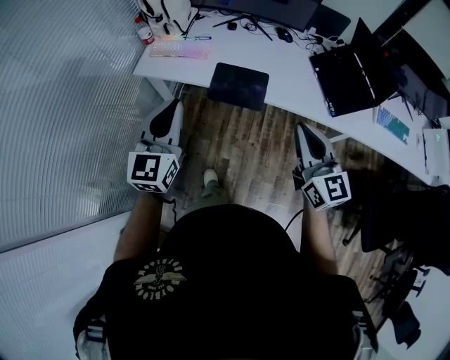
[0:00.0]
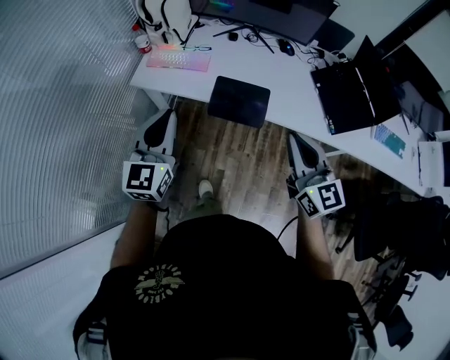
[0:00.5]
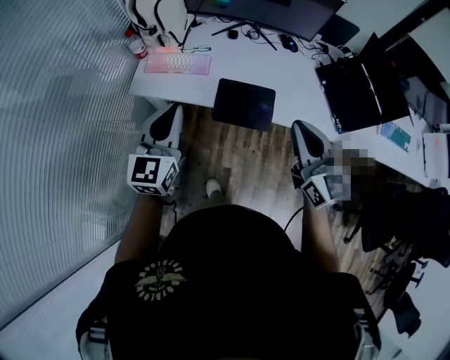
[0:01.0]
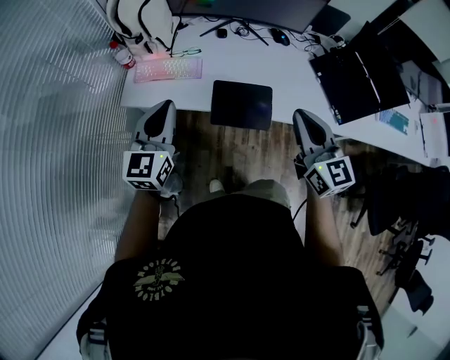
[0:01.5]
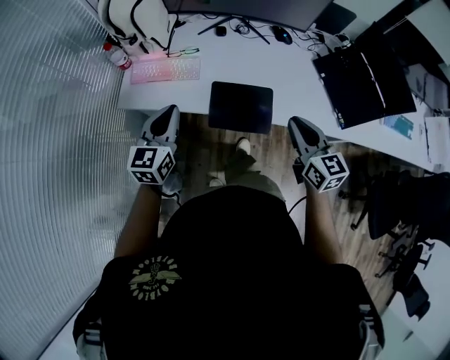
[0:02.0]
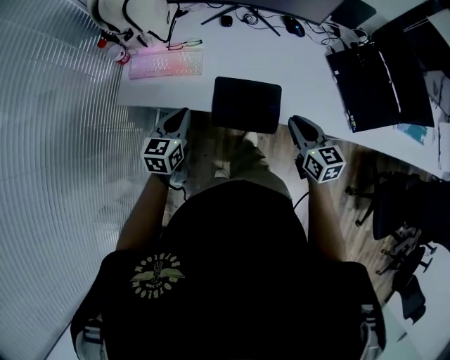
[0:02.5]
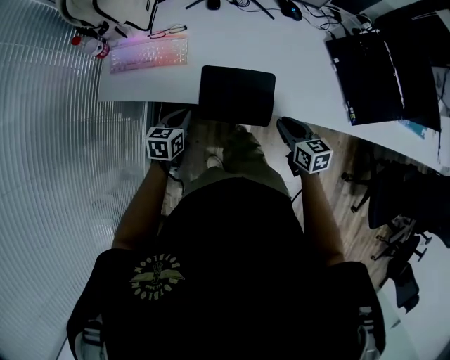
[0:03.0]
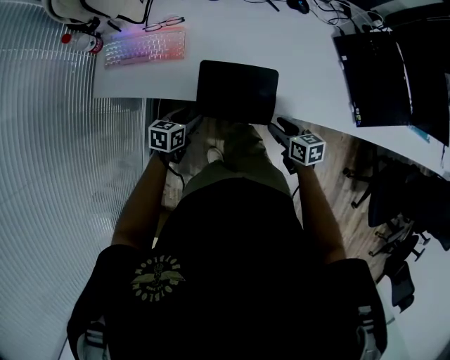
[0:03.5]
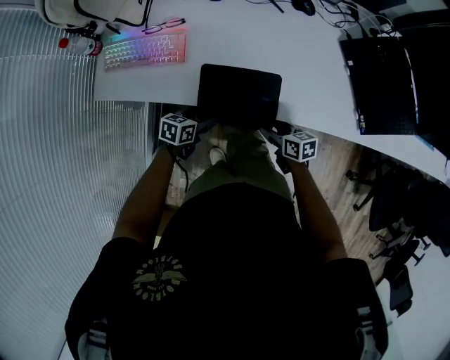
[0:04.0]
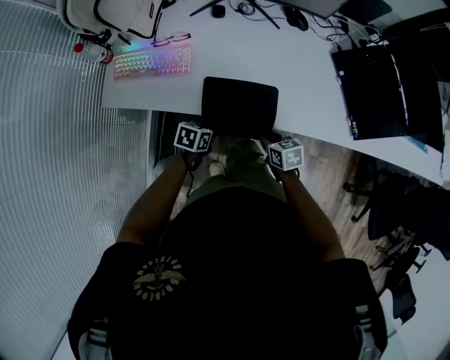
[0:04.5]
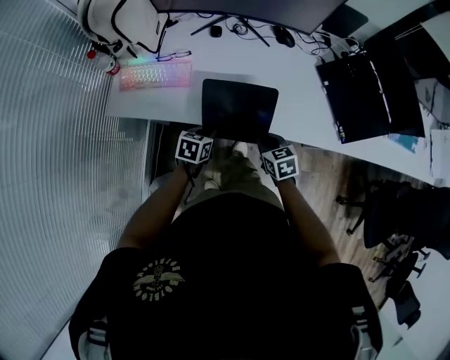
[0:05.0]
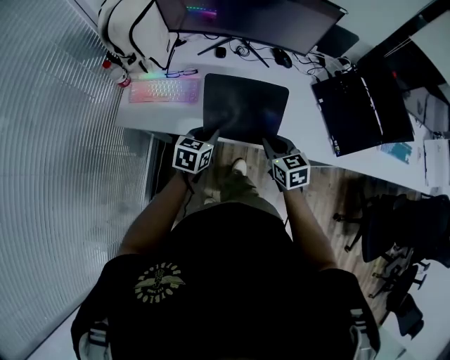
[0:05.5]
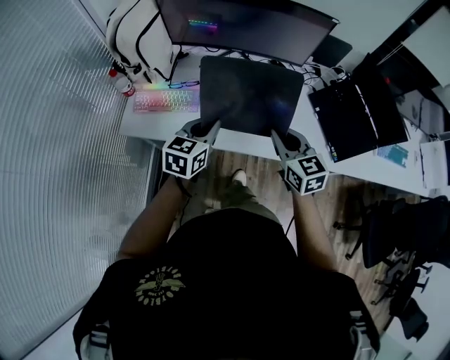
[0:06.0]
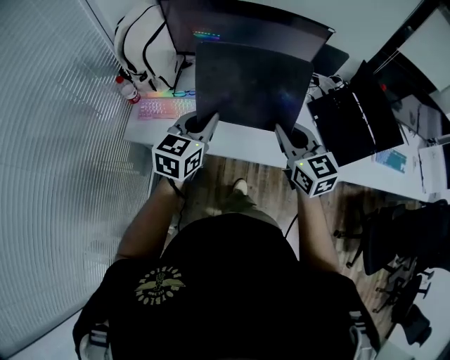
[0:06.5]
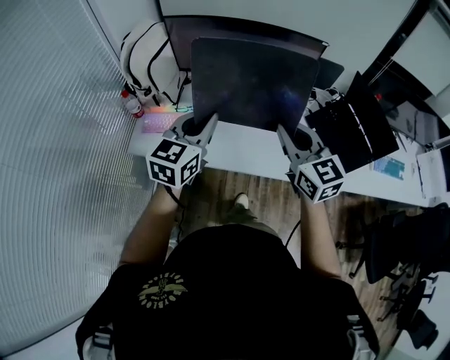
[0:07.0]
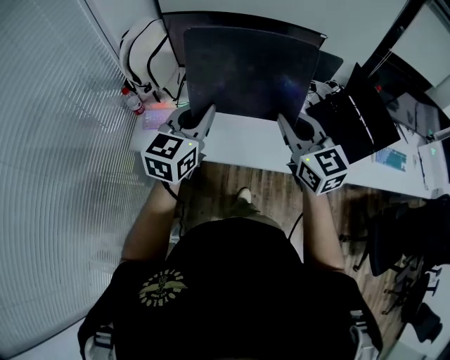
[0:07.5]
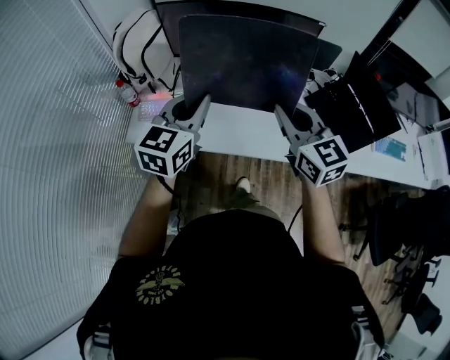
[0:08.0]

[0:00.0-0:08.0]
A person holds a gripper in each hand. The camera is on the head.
0:00.0 to 0:02.0: The grippers both shift forward and downward by approximately 25 cm.
0:02.0 to 0:04.0: Both grippers move downward, roughly 35 cm. The left gripper changes its angle by approximately 50 degrees, and opens up. Meanwhile the right gripper swivels roughly 40 degrees, and opens up.
0:04.0 to 0:06.0: The two grippers go roughly 35 cm upward. The left gripper changes its angle by about 40 degrees, and closes, while the right gripper rotates roughly 50 degrees, and closes up.
0:06.0 to 0:08.0: Both grippers travel together upward, about 15 cm.

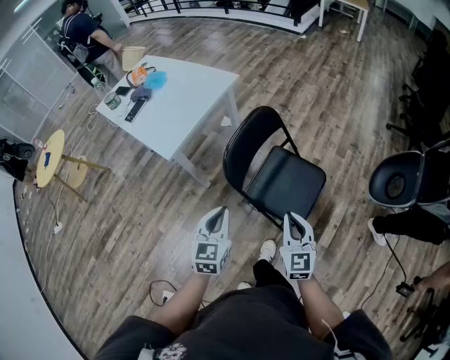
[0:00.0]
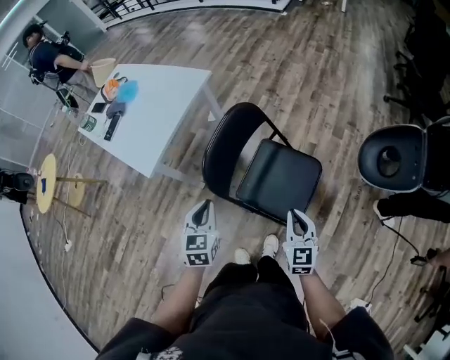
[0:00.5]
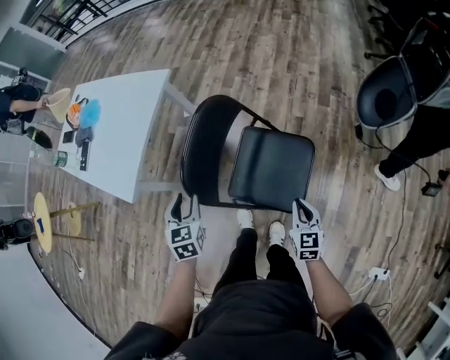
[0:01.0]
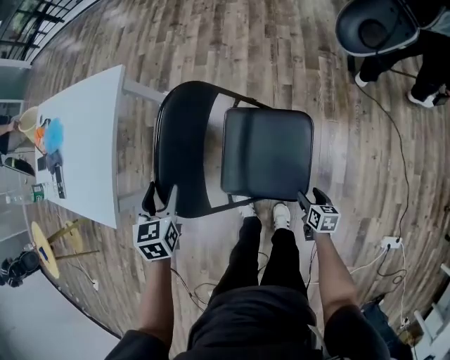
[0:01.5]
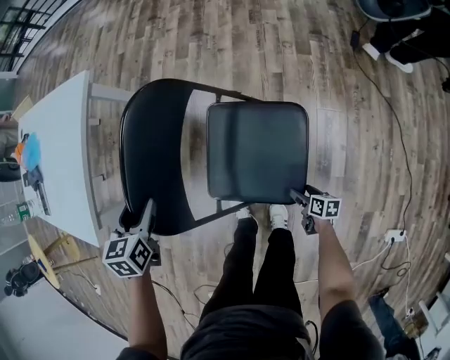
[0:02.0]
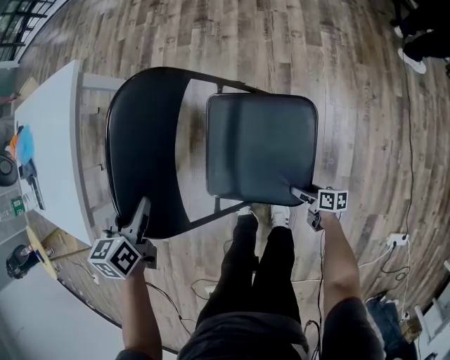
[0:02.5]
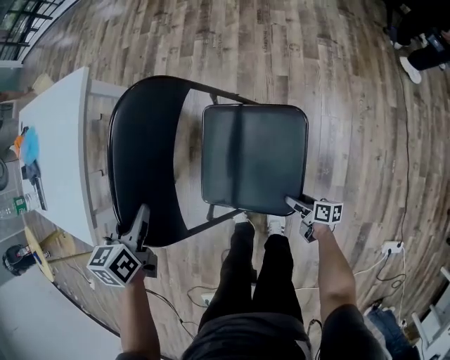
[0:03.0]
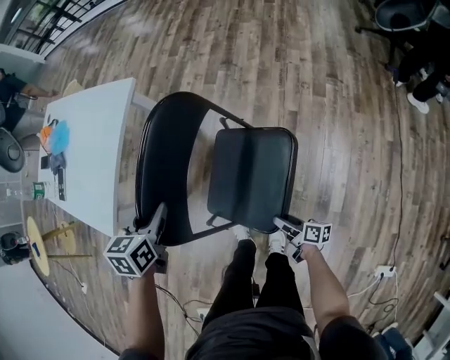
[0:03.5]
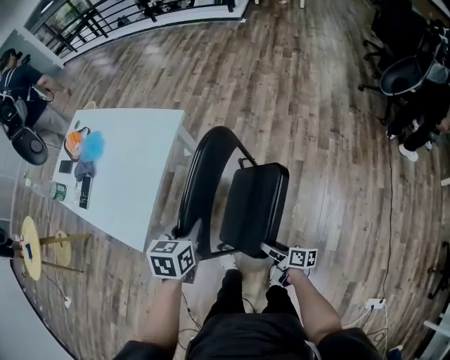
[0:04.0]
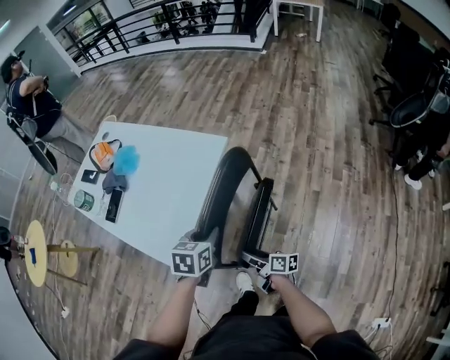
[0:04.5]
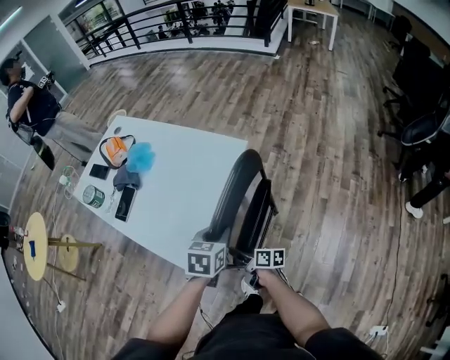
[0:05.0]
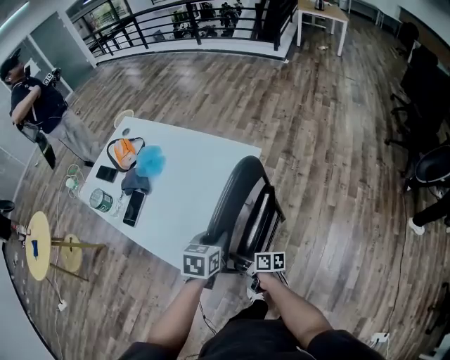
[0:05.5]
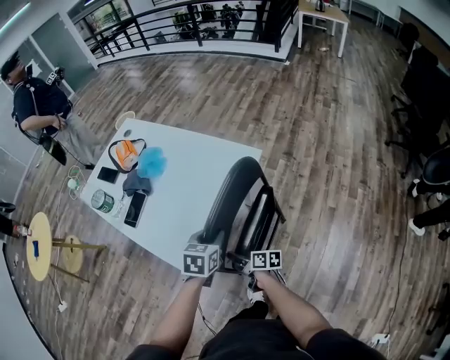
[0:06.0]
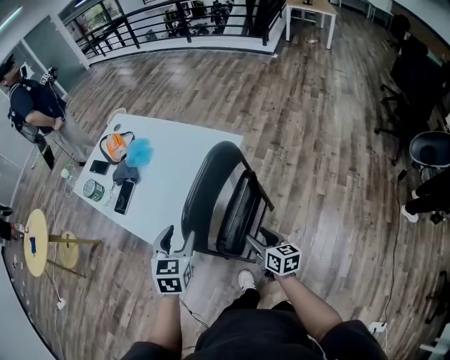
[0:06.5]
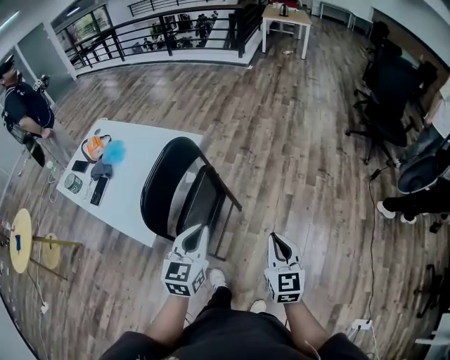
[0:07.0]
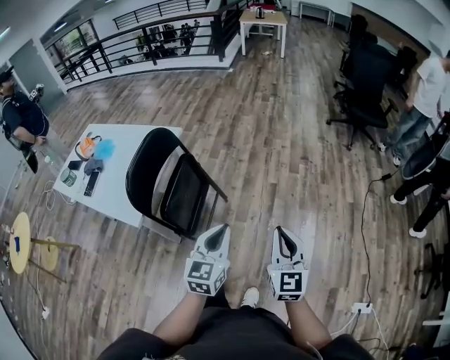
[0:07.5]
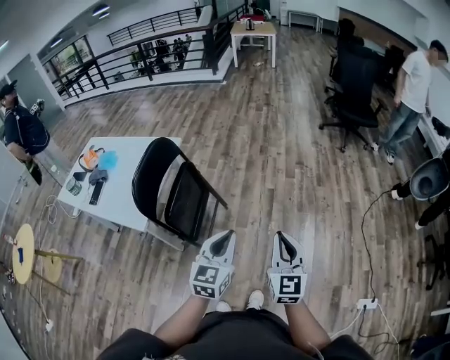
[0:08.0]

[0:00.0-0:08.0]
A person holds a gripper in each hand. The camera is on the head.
0:00.0 to 0:02.0: The right gripper travels downward by approximately 50 cm, rotates around the line of its fingers by approximately 60 degrees, clockwise from behind, and opens its fingers. The left gripper moves forward and downward, approximately 40 cm, changes its angle by approximately 30 degrees, and opens.
0:02.0 to 0:04.0: The right gripper shifts some 35 cm upward, to the left and forward, and changes its angle by roughly 30 degrees. Meanwhile the left gripper is displaced upward by approximately 15 cm, and closes.
0:04.0 to 0:06.0: The right gripper shifts some 40 cm to the left and forward. Meanwhile the left gripper heads to the left and forward, covering roughly 25 cm.
0:06.0 to 0:08.0: The two grippers travel together, roughly 60 cm. The right gripper rotates about 90 degrees, and closes up; the left gripper points its fingers about 30 degrees further upward, and closes its fingers.

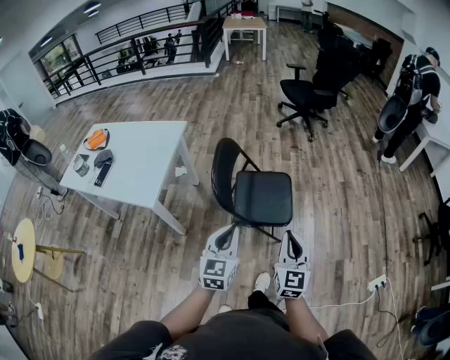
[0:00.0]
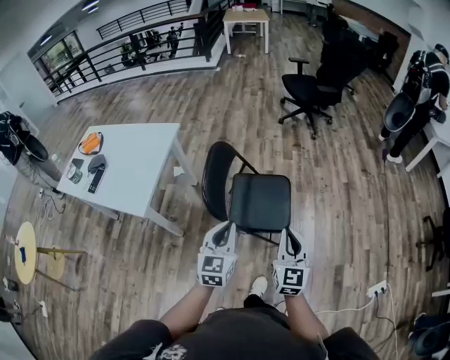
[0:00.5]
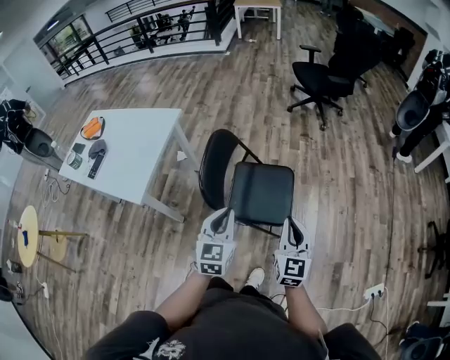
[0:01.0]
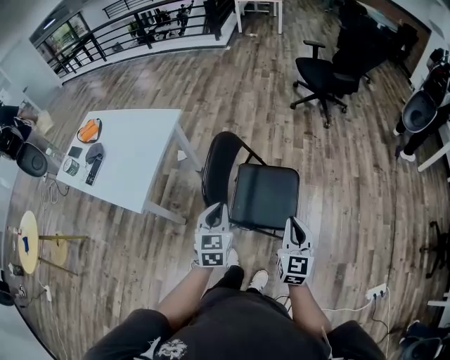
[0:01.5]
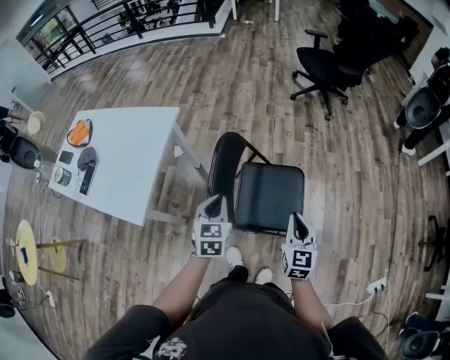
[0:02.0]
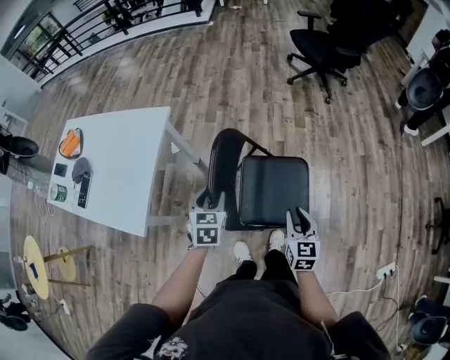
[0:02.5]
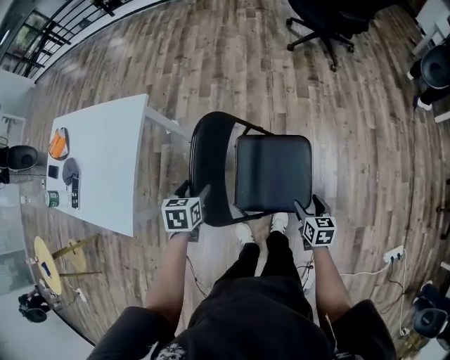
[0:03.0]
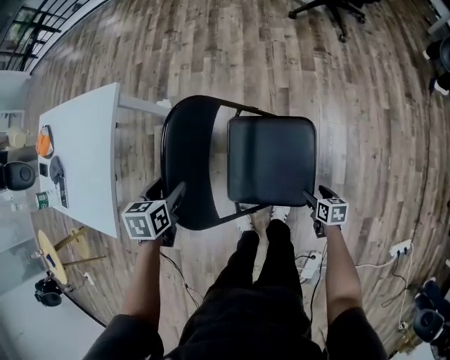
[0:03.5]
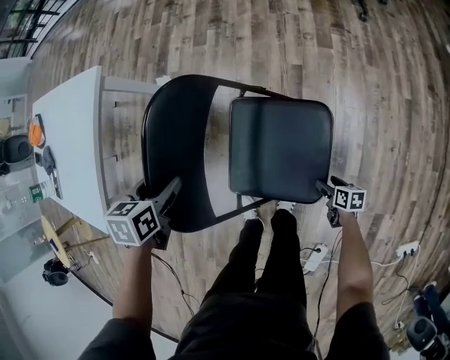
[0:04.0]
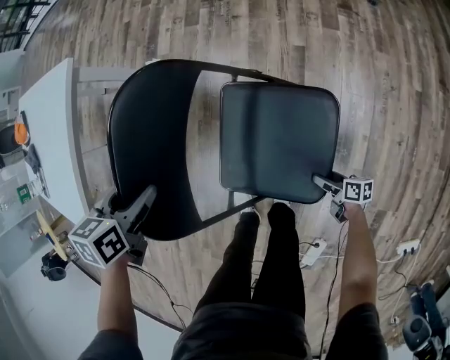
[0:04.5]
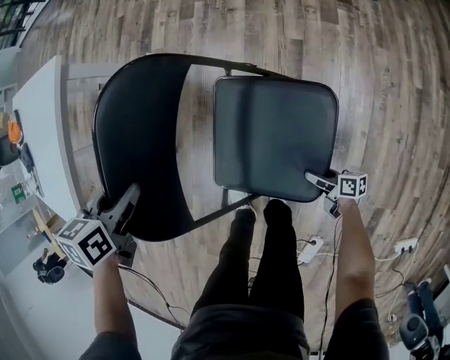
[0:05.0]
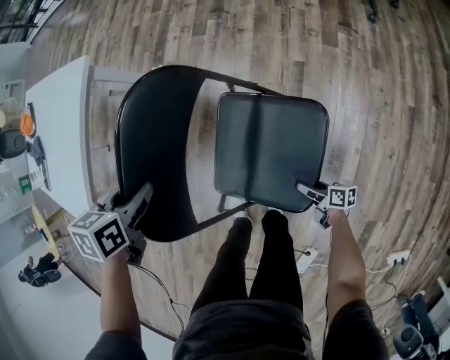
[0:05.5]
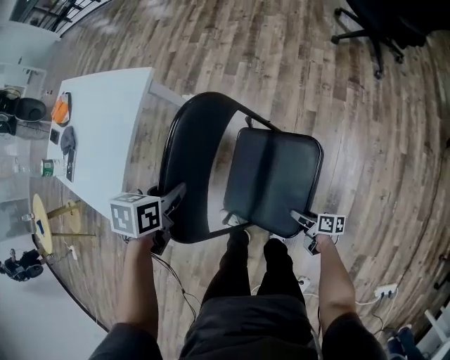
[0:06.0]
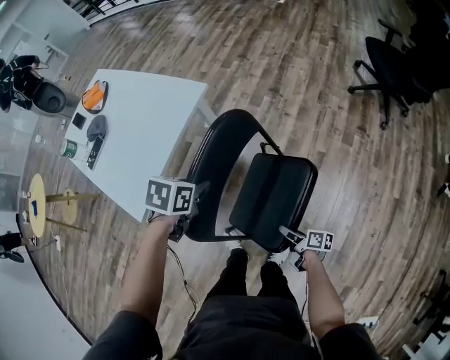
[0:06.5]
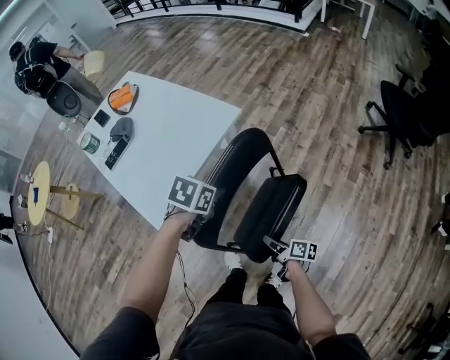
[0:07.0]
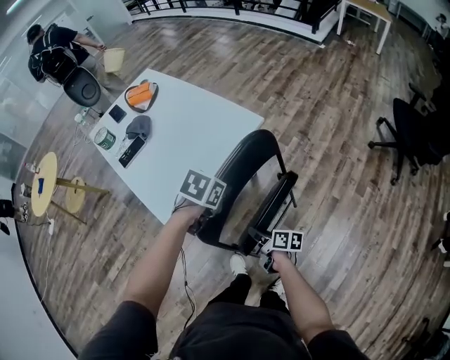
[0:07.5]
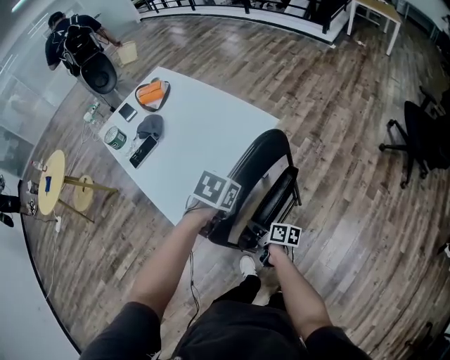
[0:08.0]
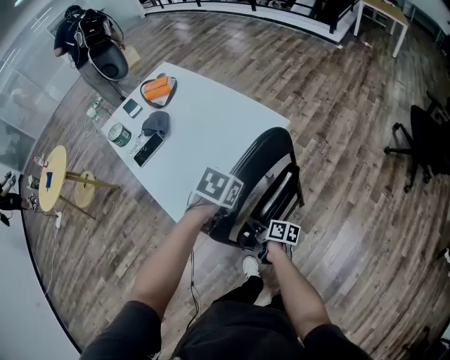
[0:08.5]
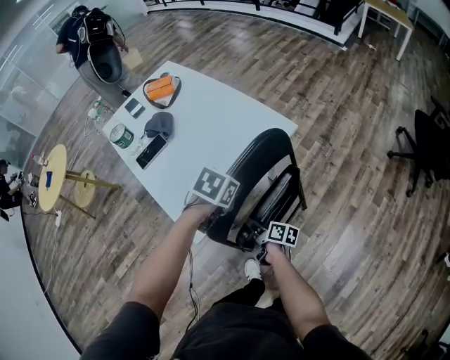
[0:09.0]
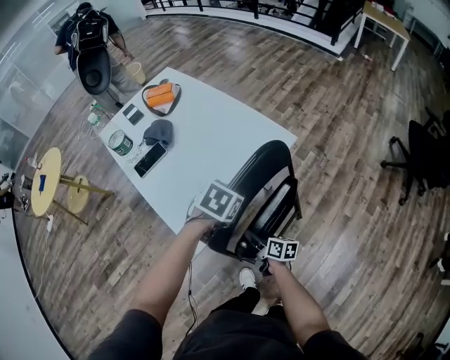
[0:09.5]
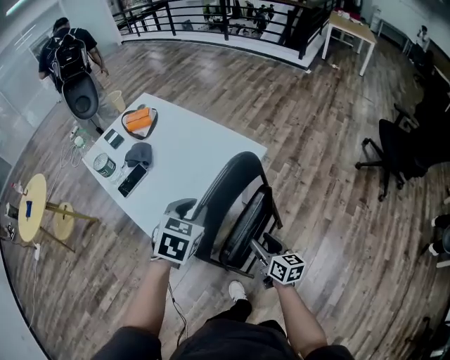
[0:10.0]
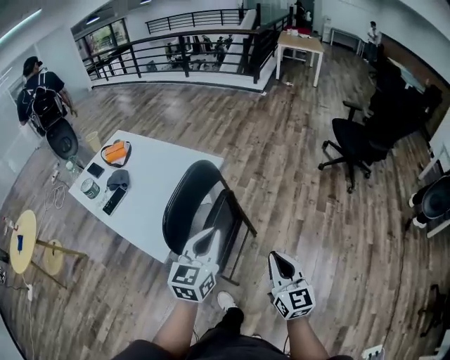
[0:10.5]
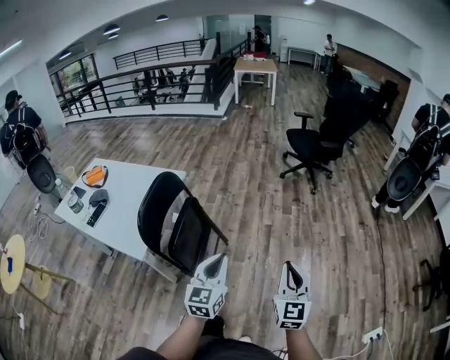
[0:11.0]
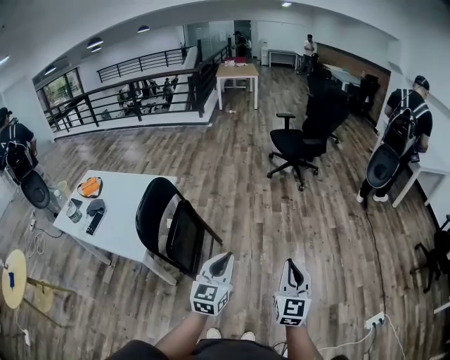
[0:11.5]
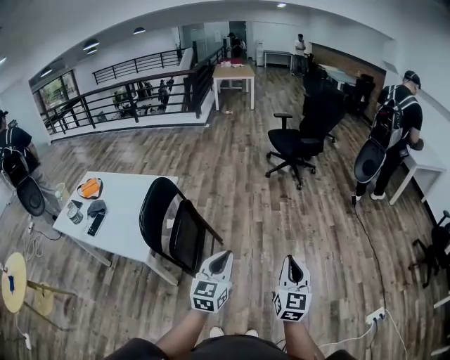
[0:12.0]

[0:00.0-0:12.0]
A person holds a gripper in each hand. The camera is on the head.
0:00.0 to 0:02.0: The grippers both shift forward by roughly 30 cm. The left gripper turns by about 20 degrees.
0:02.0 to 0:04.0: The left gripper moves downward and forward, approximately 25 cm, points its fingers roughly 30 degrees further downward, and opens its fingers. Meanwhile the right gripper goes some 50 cm downward, tilts its fingers some 30 degrees downward, and opens its fingers.
0:04.0 to 0:06.0: The right gripper travels to the left, upward and forward by roughly 20 cm, and swivels about 30 degrees. Meanwhile the left gripper shifts about 10 cm upward, and closes up.
0:06.0 to 0:08.0: The left gripper moves to the left, upward and forward, roughly 25 cm. Meanwhile the right gripper travels to the left, forward and upward by roughly 50 cm, and closes its fingers.
0:08.0 to 0:10.0: The left gripper heads to the left and upward, covering about 15 cm, and changes its angle by some 30 degrees; the right gripper goes approximately 10 cm upward, and rotates approximately 40 degrees.
0:10.0 to 0:12.0: The pair of grippers is taken approximately 60 cm. The left gripper angles its fingers upward, by approximately 40 degrees, and closes its fingers; the right gripper changes its angle by approximately 70 degrees, and closes up.
